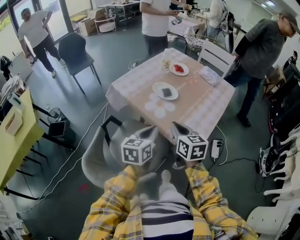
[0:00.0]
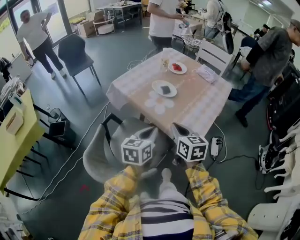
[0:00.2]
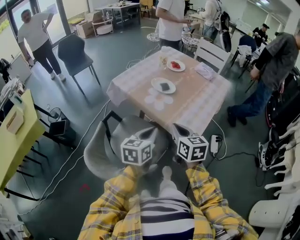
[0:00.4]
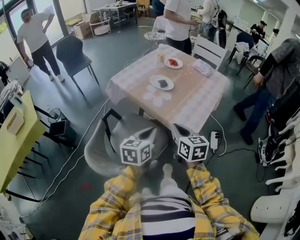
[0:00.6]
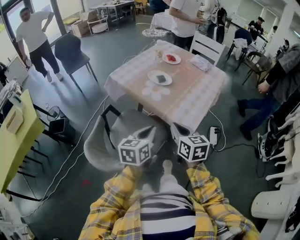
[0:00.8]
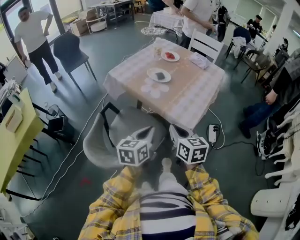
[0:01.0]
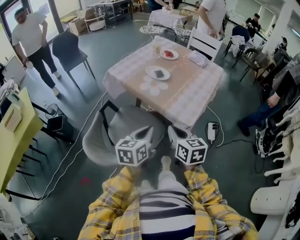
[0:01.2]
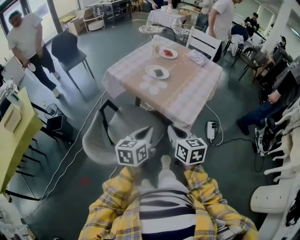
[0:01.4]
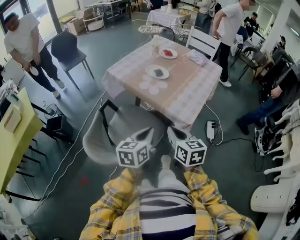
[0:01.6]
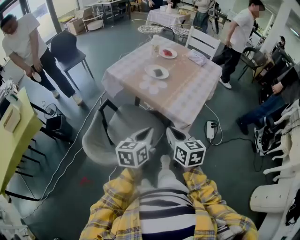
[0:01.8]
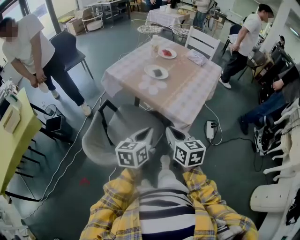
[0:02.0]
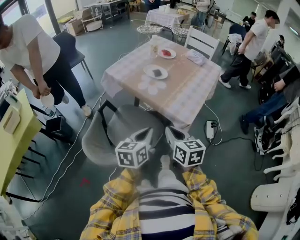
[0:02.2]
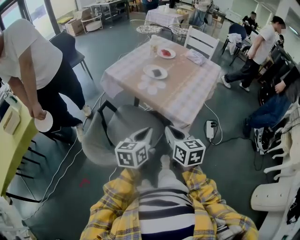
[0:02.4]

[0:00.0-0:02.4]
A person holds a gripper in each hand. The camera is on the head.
0:00.0 to 0:01.2: The grippers both shift backward by some 15 cm.
0:01.2 to 0:02.4: The grippers stay close to where they were, moving slightly.

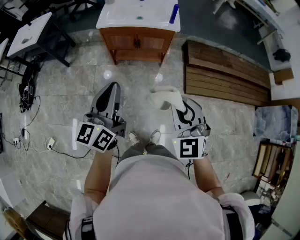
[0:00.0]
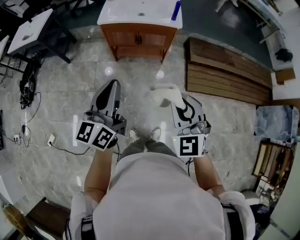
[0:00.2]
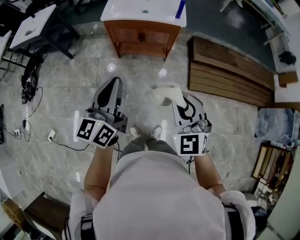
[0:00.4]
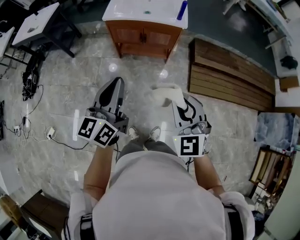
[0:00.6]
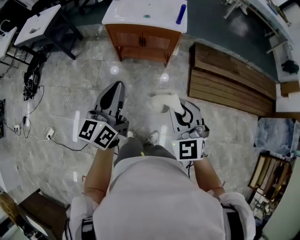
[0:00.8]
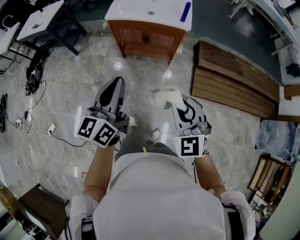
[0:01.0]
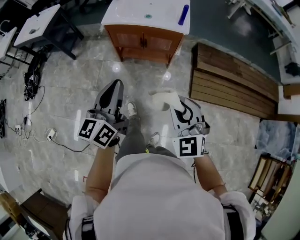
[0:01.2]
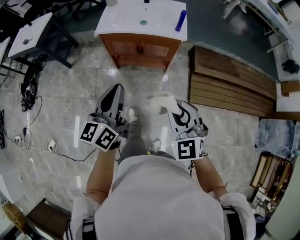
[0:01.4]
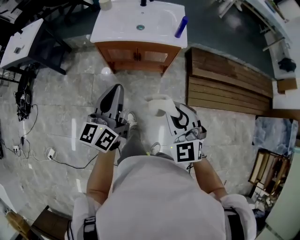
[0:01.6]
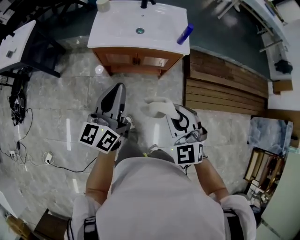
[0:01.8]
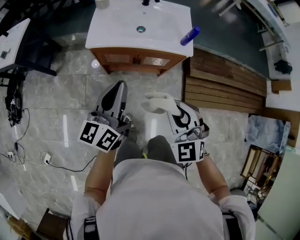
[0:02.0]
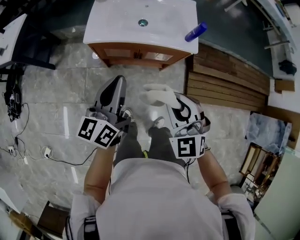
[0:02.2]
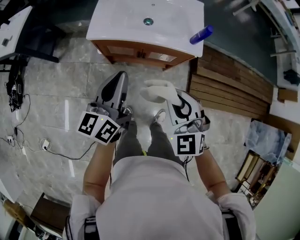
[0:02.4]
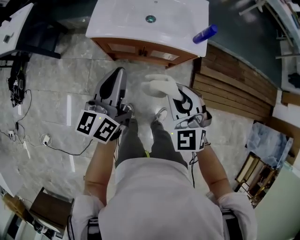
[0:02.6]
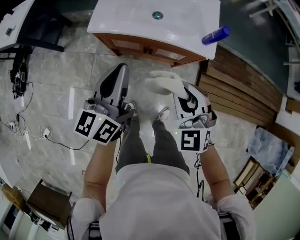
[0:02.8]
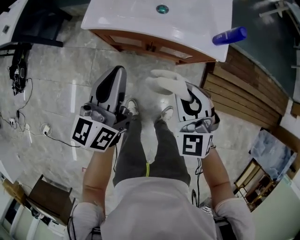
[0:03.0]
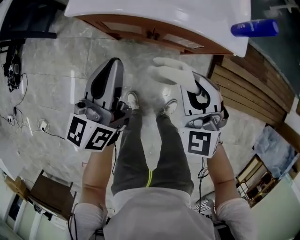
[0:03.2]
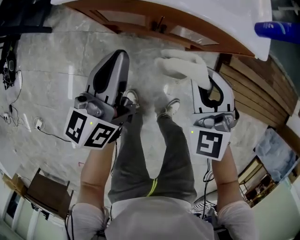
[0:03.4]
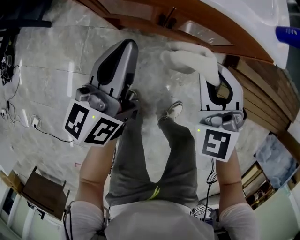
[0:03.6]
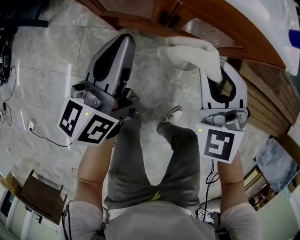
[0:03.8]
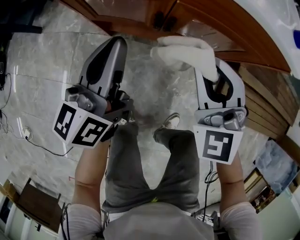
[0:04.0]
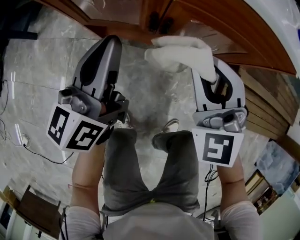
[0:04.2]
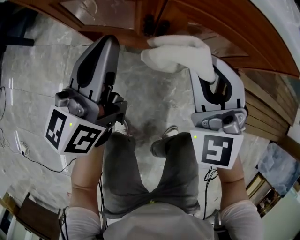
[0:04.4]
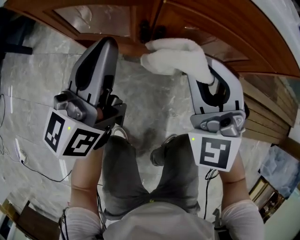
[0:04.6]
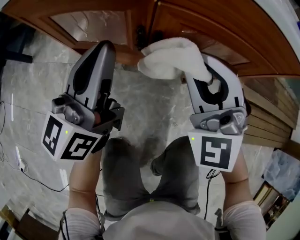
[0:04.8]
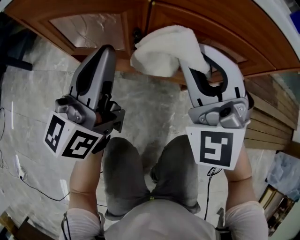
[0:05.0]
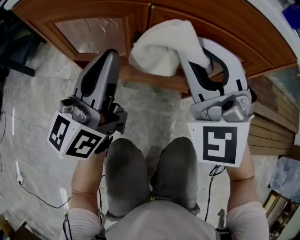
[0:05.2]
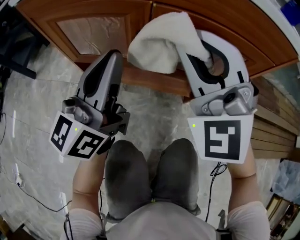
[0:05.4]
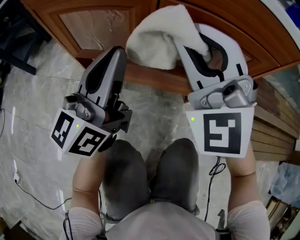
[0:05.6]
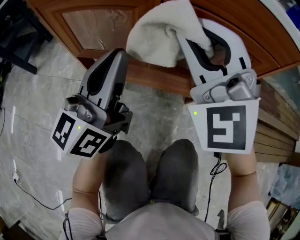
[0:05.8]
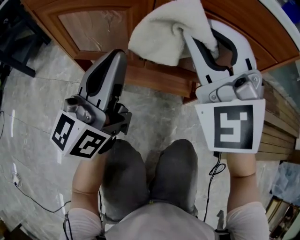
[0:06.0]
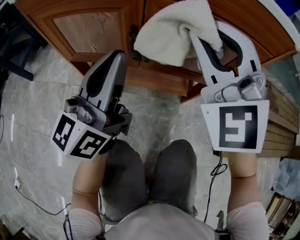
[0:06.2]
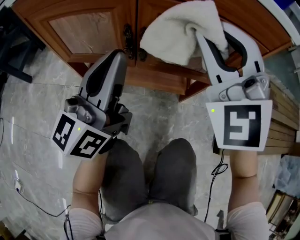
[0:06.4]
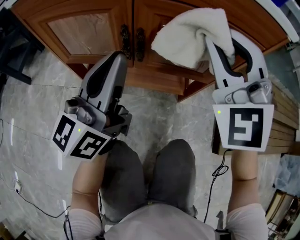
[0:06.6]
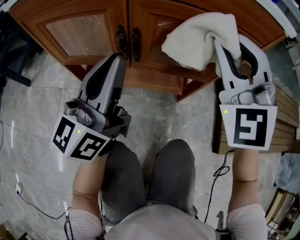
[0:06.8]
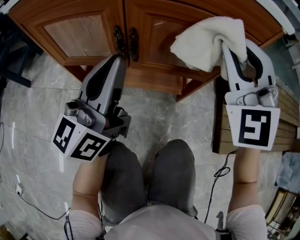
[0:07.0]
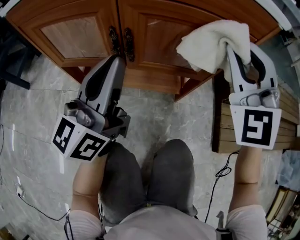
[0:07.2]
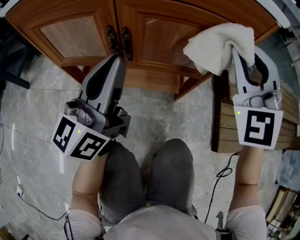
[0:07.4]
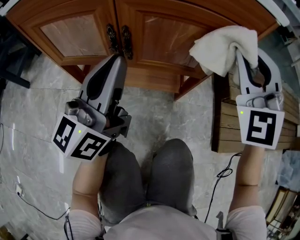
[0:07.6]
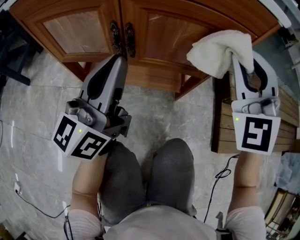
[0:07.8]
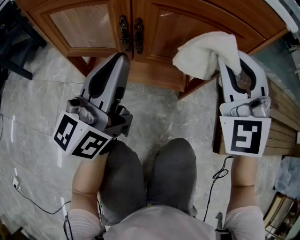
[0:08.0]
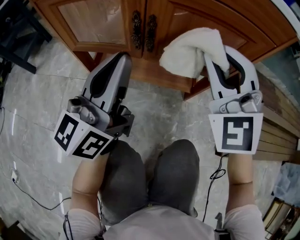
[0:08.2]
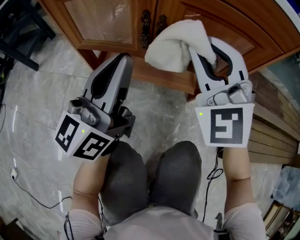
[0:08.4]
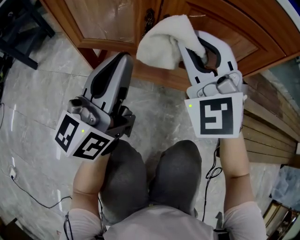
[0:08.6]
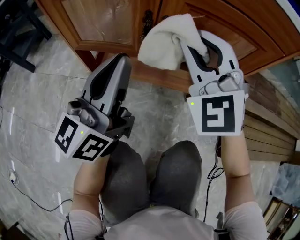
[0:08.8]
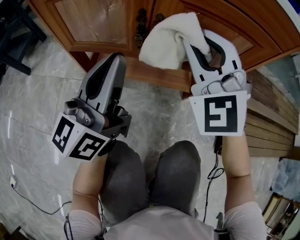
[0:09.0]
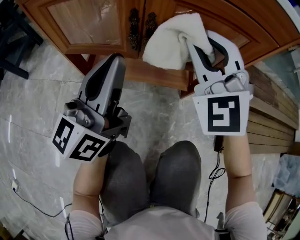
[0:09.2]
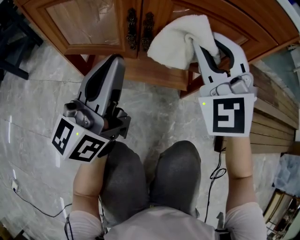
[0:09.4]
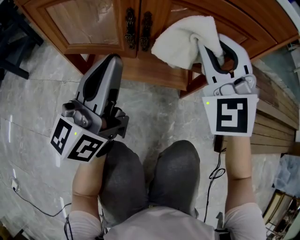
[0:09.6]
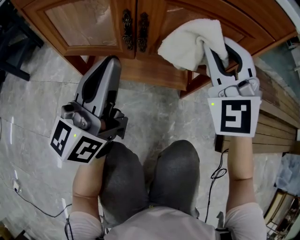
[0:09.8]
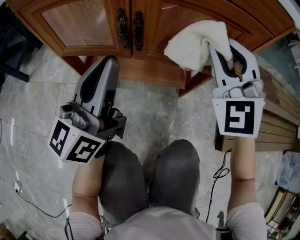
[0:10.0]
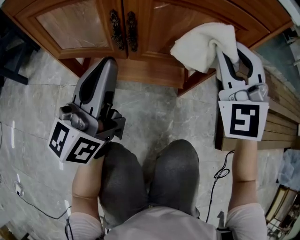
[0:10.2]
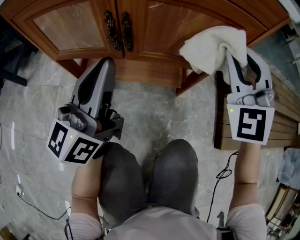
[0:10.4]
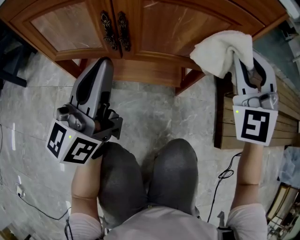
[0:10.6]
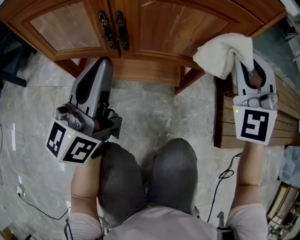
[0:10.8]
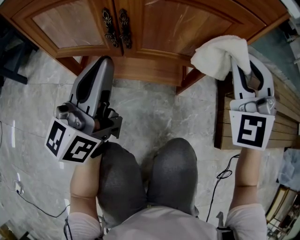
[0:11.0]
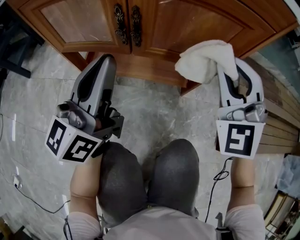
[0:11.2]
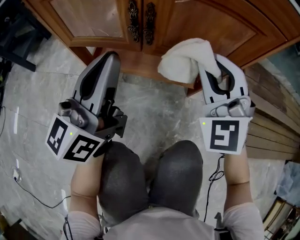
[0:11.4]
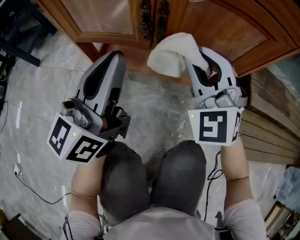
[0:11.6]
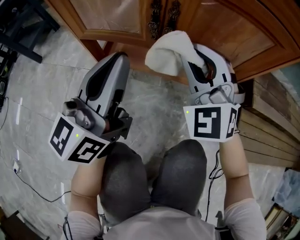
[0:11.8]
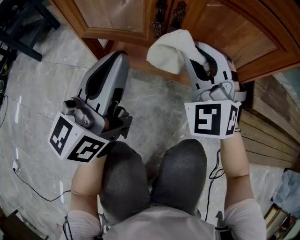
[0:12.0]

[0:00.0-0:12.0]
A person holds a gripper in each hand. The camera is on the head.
0:00.0 to 0:01.6: The grippers both shift forward by roughly 20 cm.
0:01.6 to 0:03.0: Both grippers travel together forward and downward, about 30 cm.
0:03.0 to 0:04.4: The two grippers go about 35 cm downward.
0:04.4 to 0:06.0: The left gripper shifts about 5 cm downward.
0:06.0 to 0:07.6: The left gripper shifts approximately 5 cm to the right, while the right gripper is displaced to the right by about 20 cm.
0:07.6 to 0:09.0: The right gripper moves to the left and downward, about 20 cm. The left gripper goes about 5 cm to the left.
0:09.0 to 0:10.4: The right gripper is displaced to the right by about 15 cm.
0:10.4 to 0:12.0: The right gripper moves to the left and downward, approximately 20 cm. Meanwhile the left gripper is displaced to the left by approximately 5 cm.

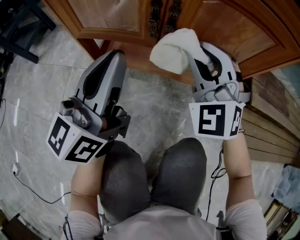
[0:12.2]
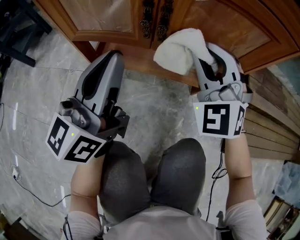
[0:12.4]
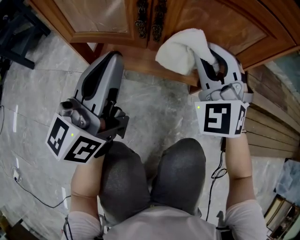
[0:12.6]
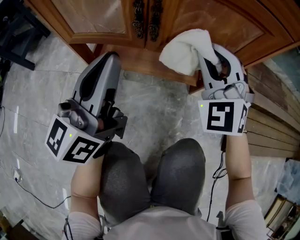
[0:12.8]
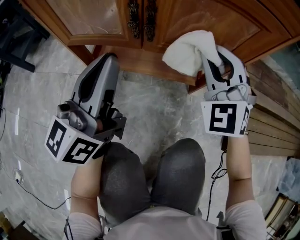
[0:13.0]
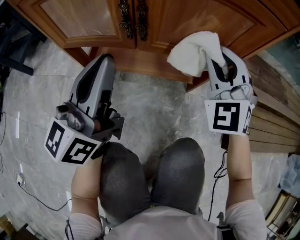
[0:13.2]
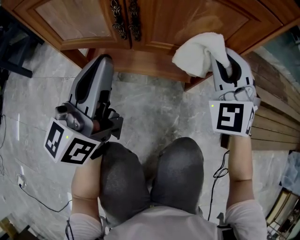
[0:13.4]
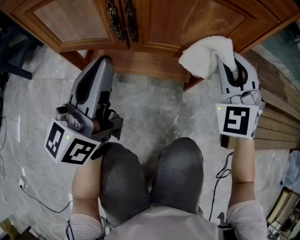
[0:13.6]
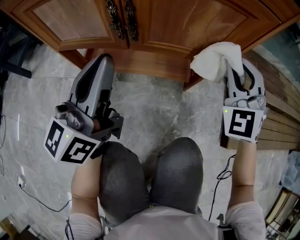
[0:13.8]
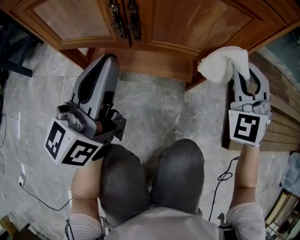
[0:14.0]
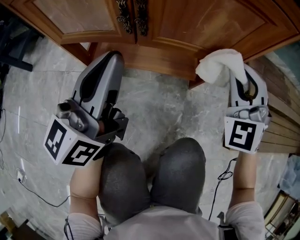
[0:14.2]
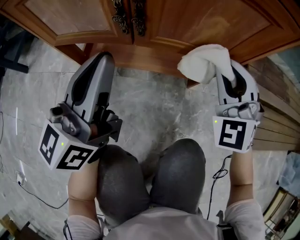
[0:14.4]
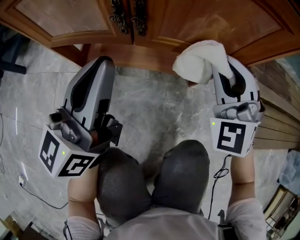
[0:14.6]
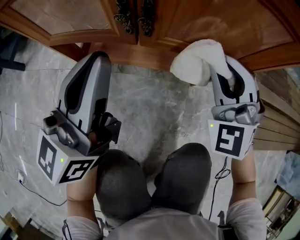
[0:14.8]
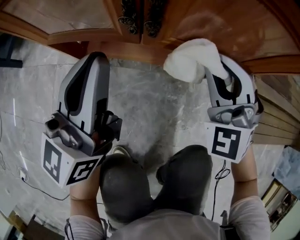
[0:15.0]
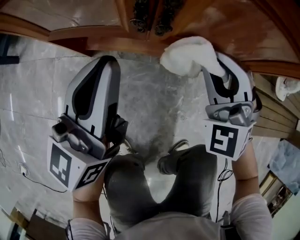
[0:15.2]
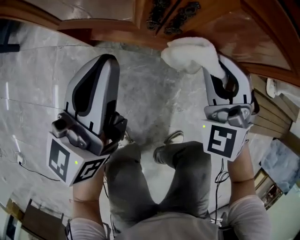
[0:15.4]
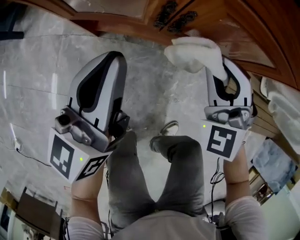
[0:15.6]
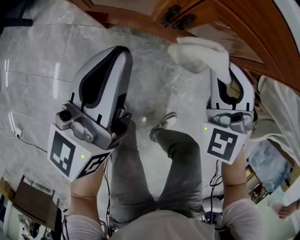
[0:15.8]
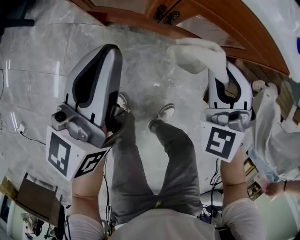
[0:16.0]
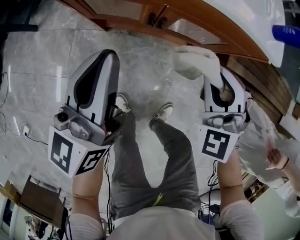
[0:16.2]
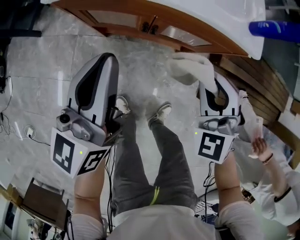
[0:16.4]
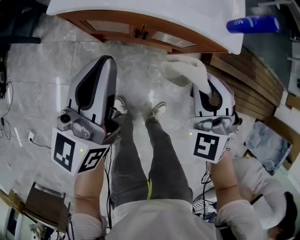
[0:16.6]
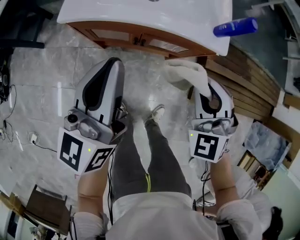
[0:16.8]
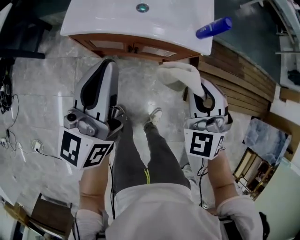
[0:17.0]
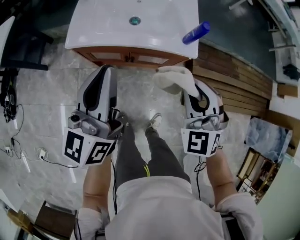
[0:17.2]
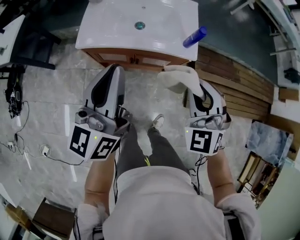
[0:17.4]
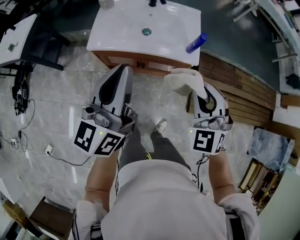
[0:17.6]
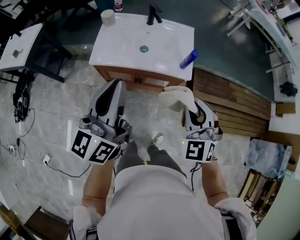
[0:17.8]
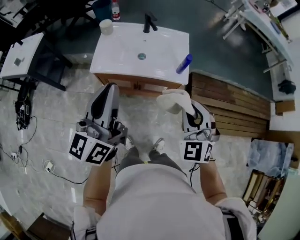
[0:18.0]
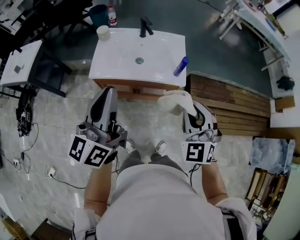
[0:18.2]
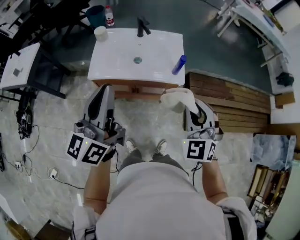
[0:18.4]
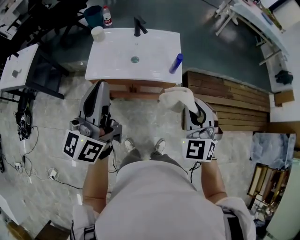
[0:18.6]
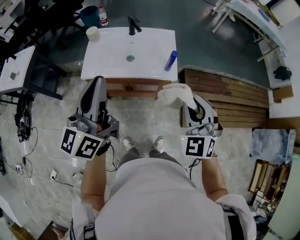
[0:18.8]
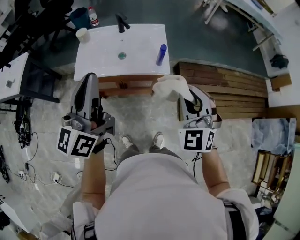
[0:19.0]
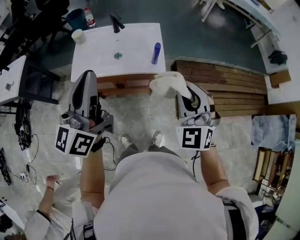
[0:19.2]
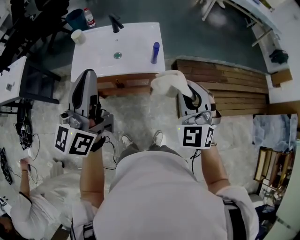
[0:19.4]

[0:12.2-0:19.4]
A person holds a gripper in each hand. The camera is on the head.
0:12.2 to 0:13.6: The right gripper goes approximately 15 cm to the right; the left gripper moves about 5 cm.
0:13.6 to 0:15.0: The right gripper heads to the left and downward, covering some 10 cm. The left gripper shifts by approximately 5 cm.
0:15.0 to 0:16.6: Both grippers travel together upward, approximately 40 cm.
0:16.6 to 0:18.0: Both grippers travel together upward, roughly 35 cm.
0:18.0 to 0:19.4: The right gripper heads to the right, covering roughly 10 cm. Meanwhile the left gripper travels to the right and upward by some 10 cm.

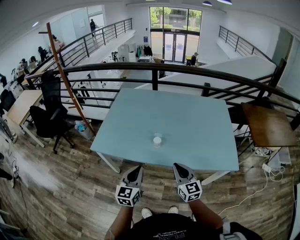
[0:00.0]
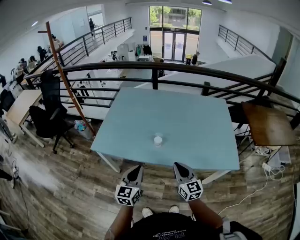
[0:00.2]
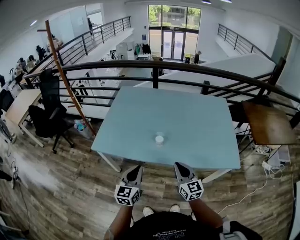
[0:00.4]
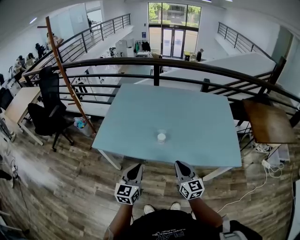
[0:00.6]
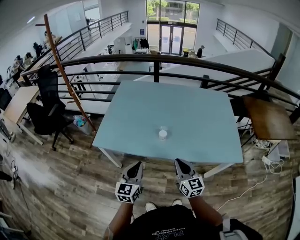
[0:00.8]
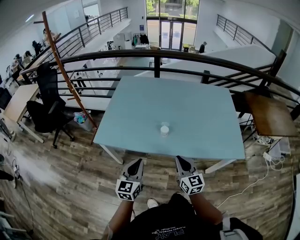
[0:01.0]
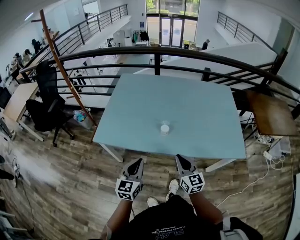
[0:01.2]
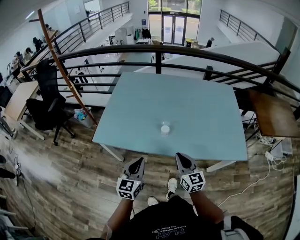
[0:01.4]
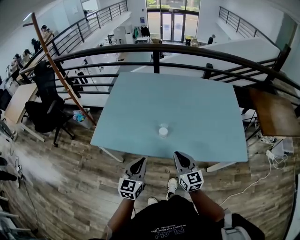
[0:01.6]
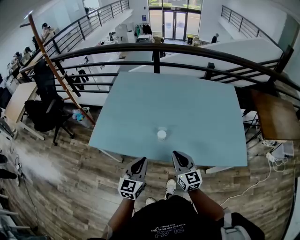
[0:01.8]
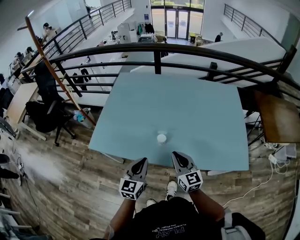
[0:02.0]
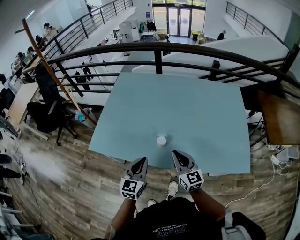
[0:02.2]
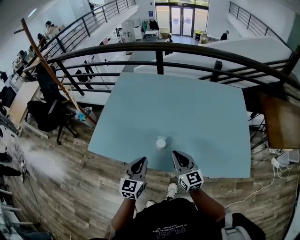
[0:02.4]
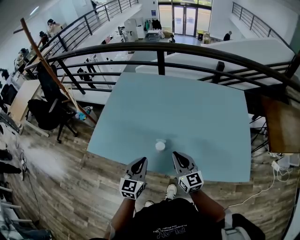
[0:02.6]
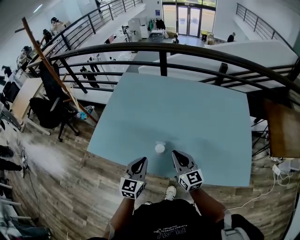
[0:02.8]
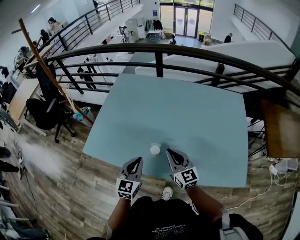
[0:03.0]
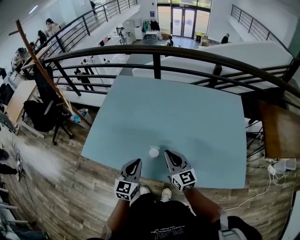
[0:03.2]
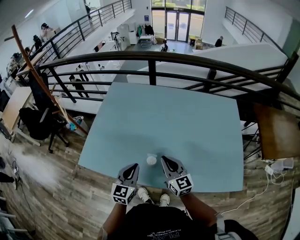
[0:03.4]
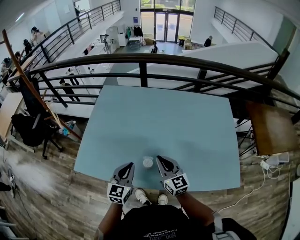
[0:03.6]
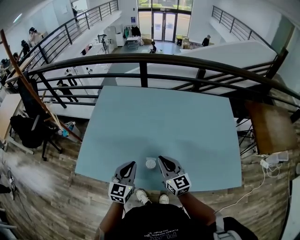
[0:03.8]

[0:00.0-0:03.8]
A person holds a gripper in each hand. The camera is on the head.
0:00.0 to 0:01.2: The right gripper ends up some 5 cm from where it was; the left gripper is displaced to the left by about 5 cm.
0:01.2 to 0:02.6: The right gripper shifts approximately 15 cm forward. Meanwhile the left gripper shifts about 15 cm forward and to the right.
0:02.6 to 0:03.8: Both grippers travel together forward, approximately 10 cm.
